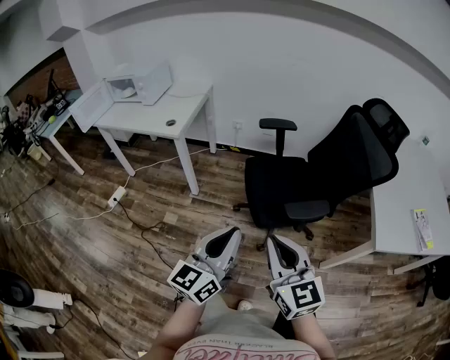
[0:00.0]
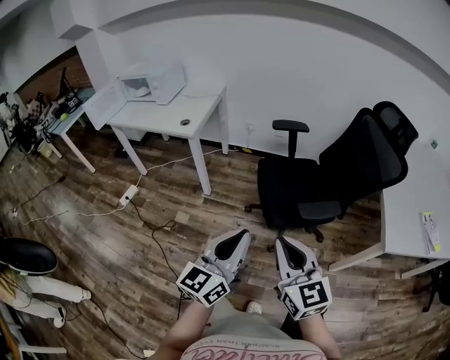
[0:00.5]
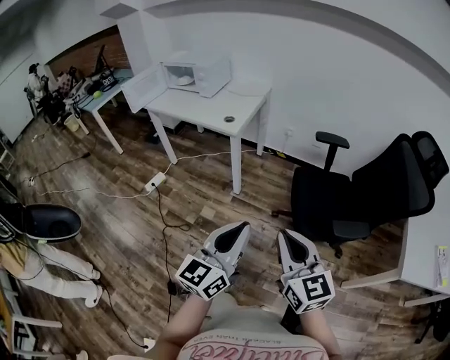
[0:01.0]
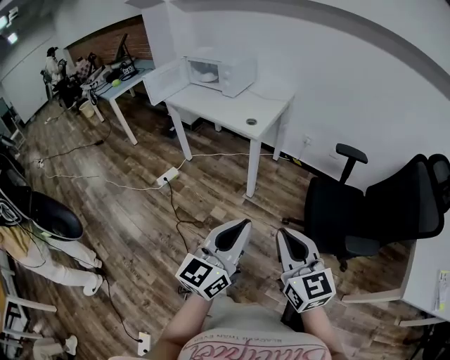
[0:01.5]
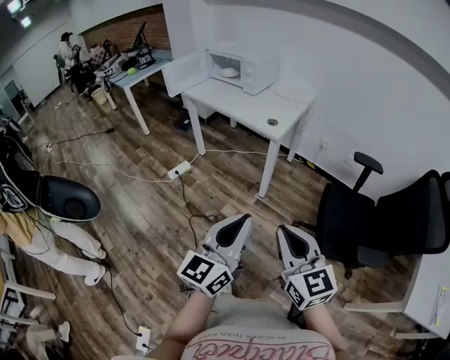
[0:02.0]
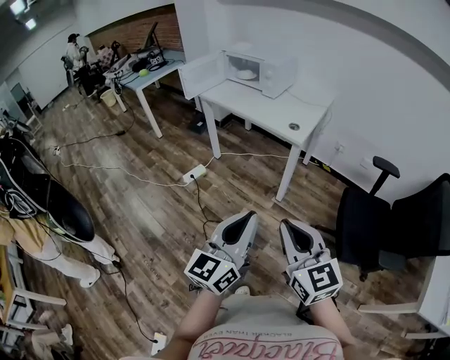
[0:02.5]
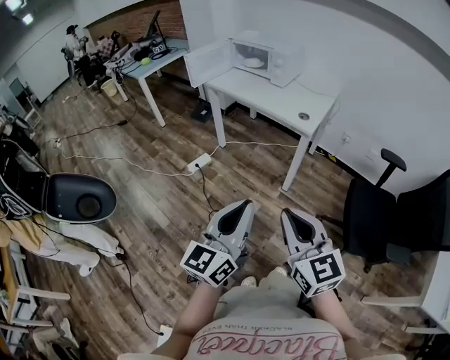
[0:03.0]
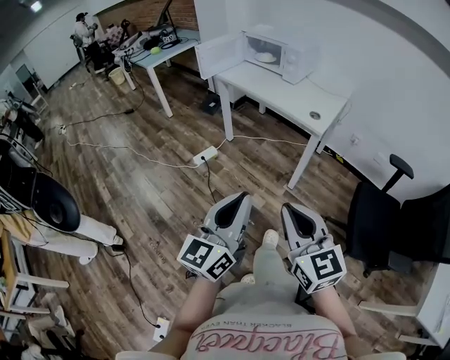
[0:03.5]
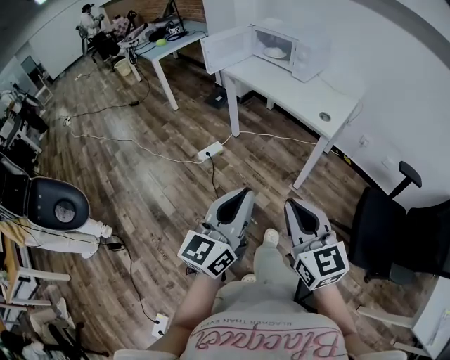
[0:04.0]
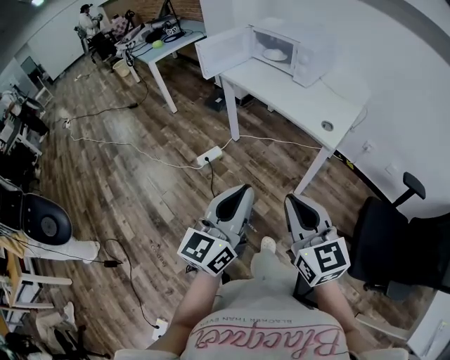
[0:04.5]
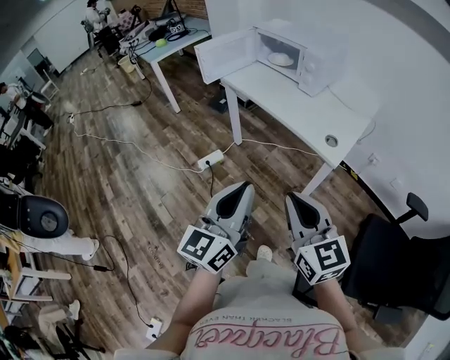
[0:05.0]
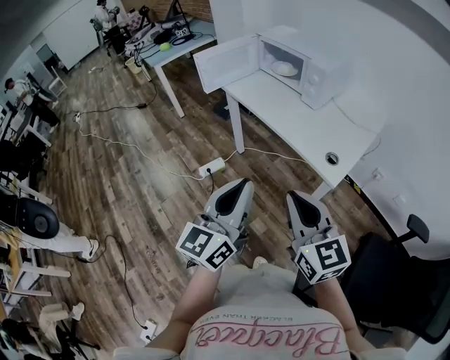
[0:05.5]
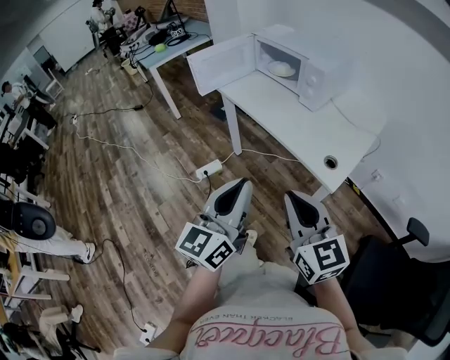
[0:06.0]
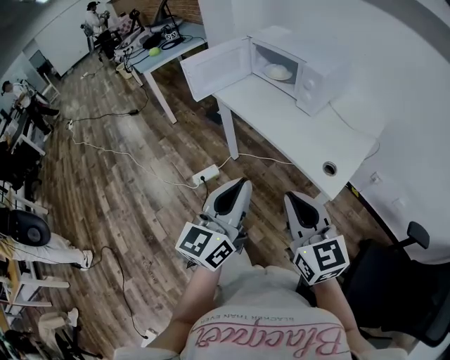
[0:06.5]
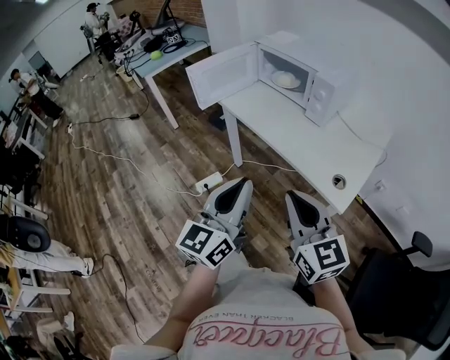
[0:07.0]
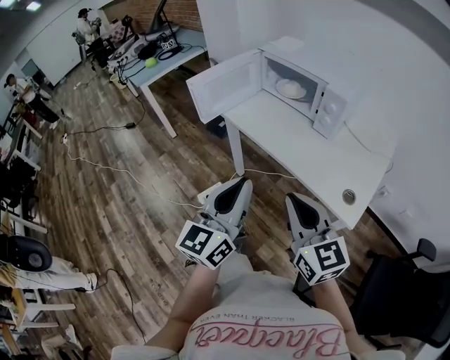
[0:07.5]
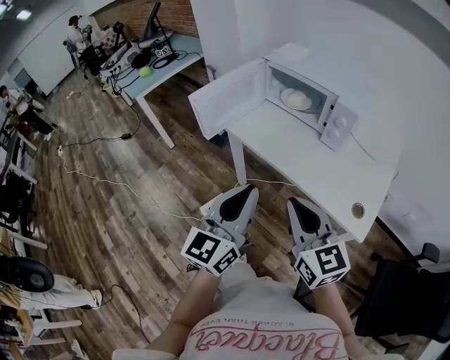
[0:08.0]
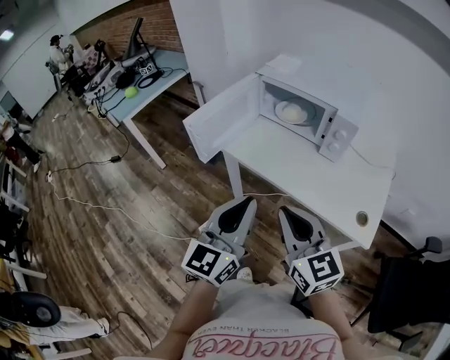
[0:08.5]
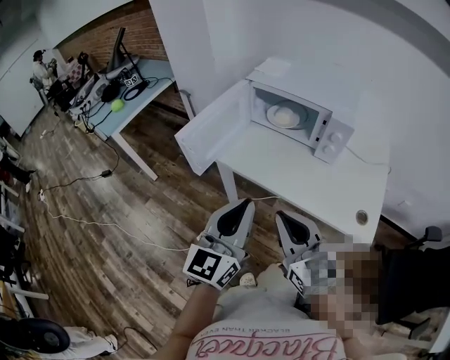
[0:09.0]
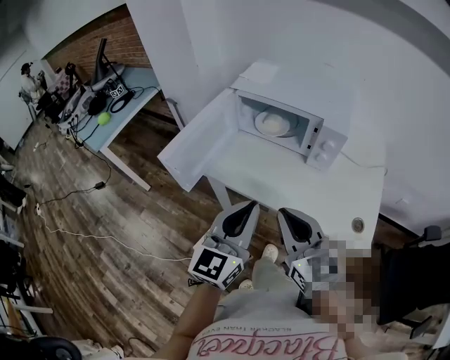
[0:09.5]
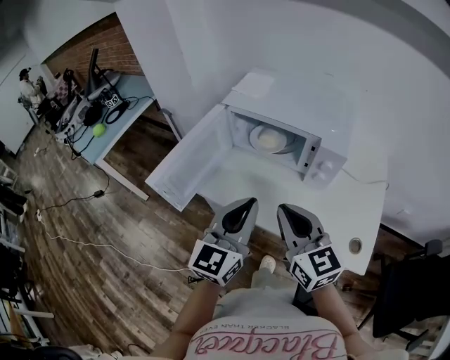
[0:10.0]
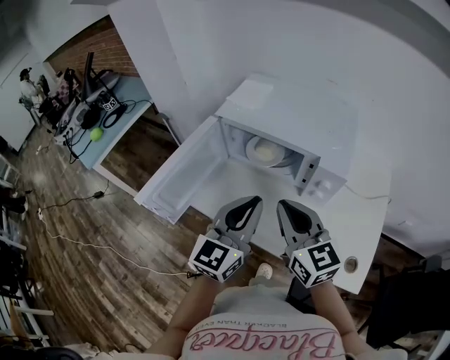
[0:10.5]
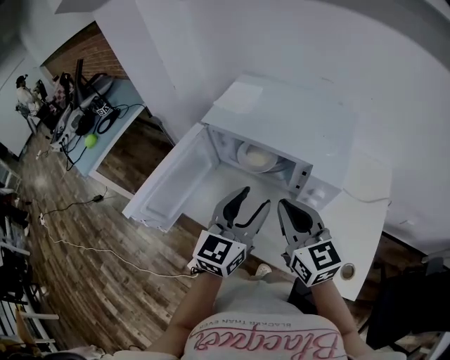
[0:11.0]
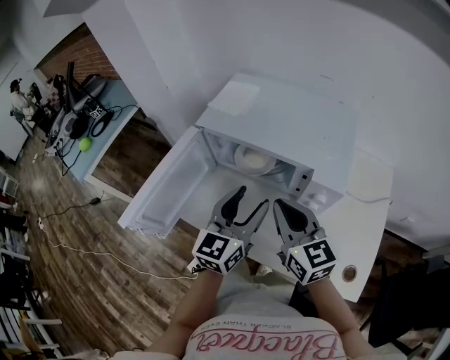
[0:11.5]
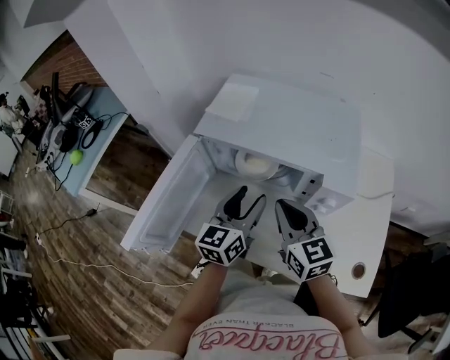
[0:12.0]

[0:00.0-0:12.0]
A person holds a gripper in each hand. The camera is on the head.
0:00.0 to 0:02.0: The two grippers go approximately 25 cm to the left. The right gripper swivels roughly 20 degrees. Meanwhile the left gripper changes its angle by roughly 20 degrees.
0:02.0 to 0:04.0: The two grippers go roughly 20 cm to the left and forward.
0:04.0 to 0:06.0: Both grippers move forward, approximately 30 cm.
0:06.0 to 0:08.0: Both grippers travel together forward and to the left, roughly 25 cm.
0:08.0 to 0:10.0: Both grippers move forward, about 20 cm.
0:10.0 to 0:12.0: The right gripper travels forward by approximately 20 cm. The left gripper goes some 25 cm forward and downward, and opens up.

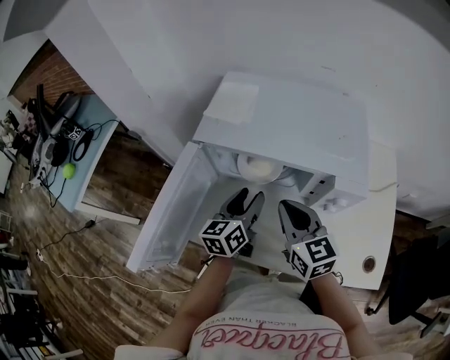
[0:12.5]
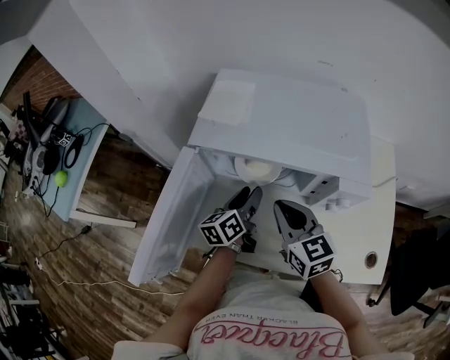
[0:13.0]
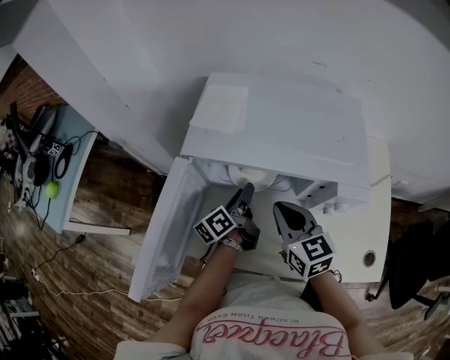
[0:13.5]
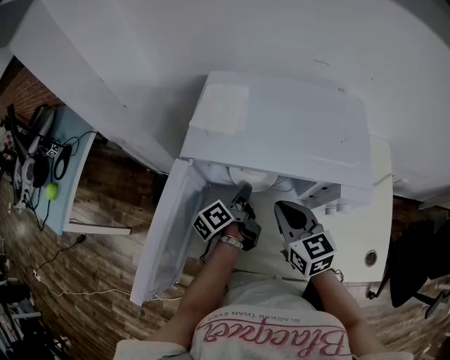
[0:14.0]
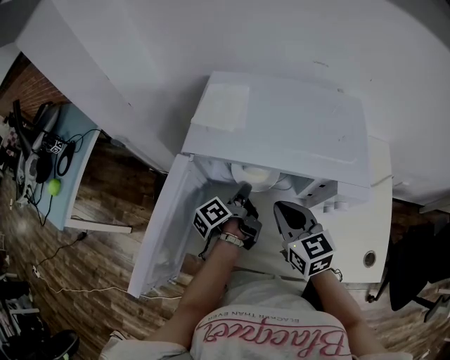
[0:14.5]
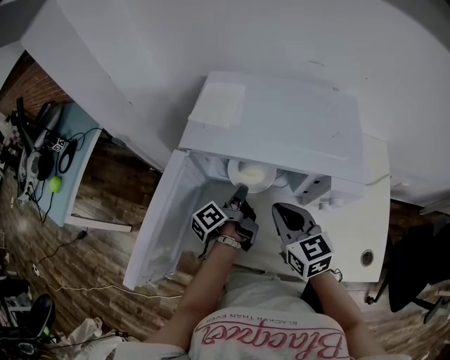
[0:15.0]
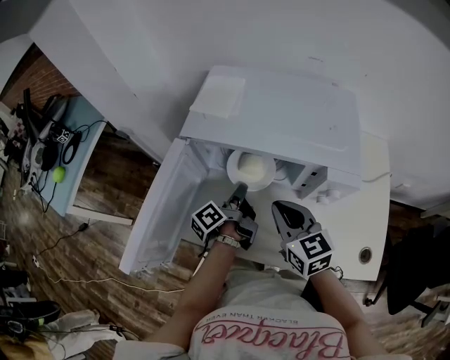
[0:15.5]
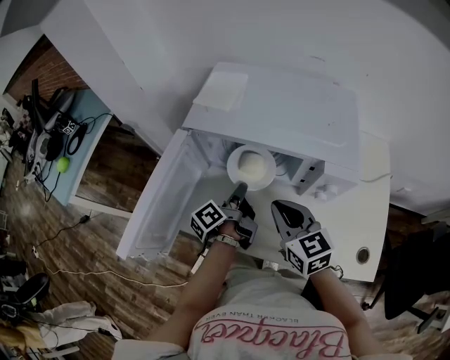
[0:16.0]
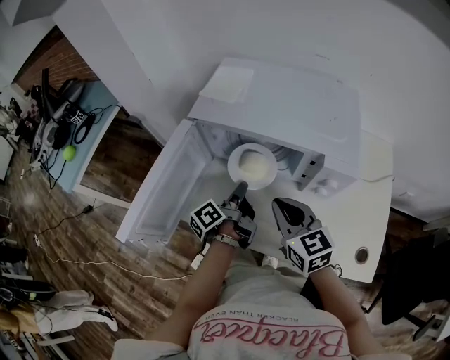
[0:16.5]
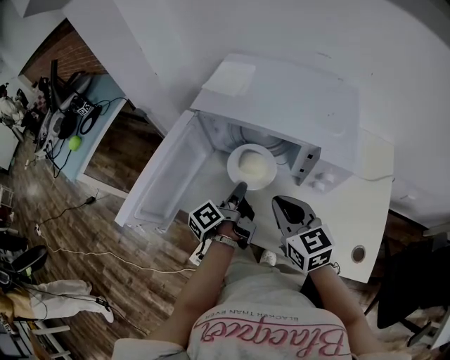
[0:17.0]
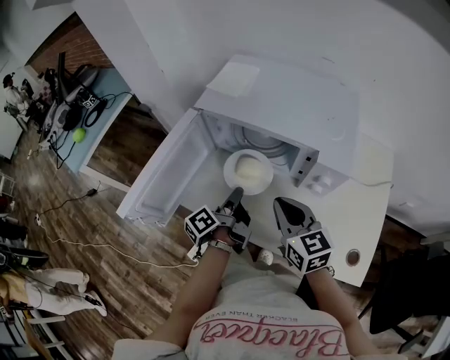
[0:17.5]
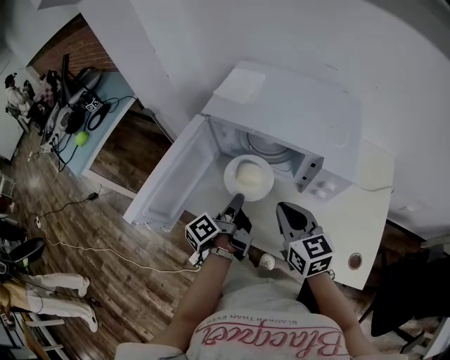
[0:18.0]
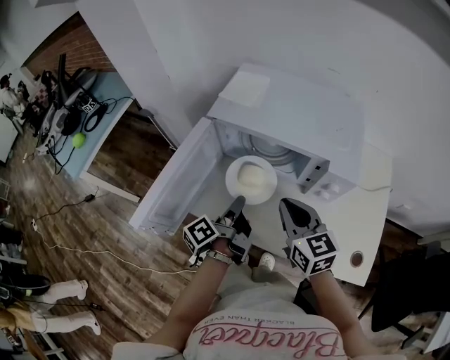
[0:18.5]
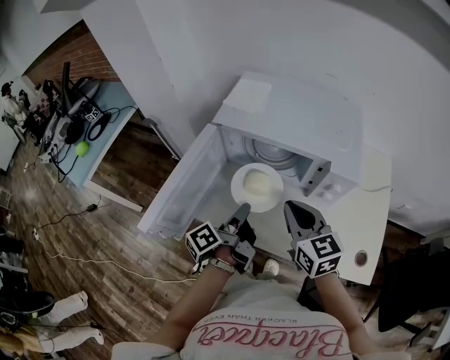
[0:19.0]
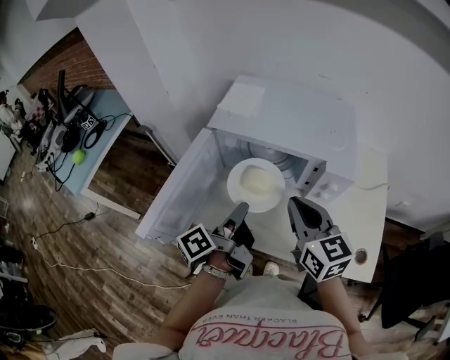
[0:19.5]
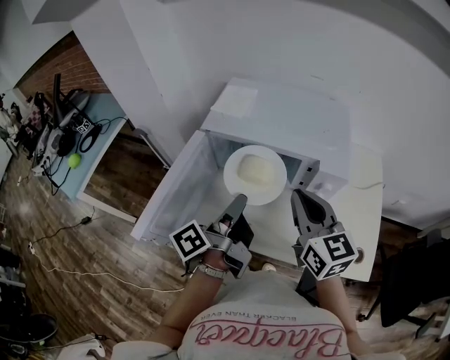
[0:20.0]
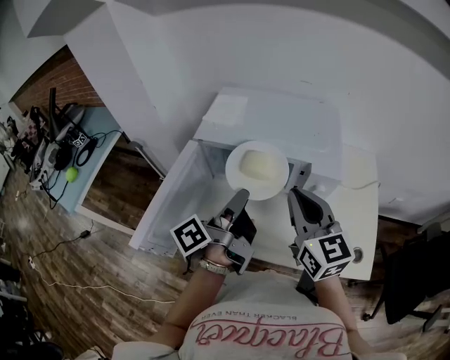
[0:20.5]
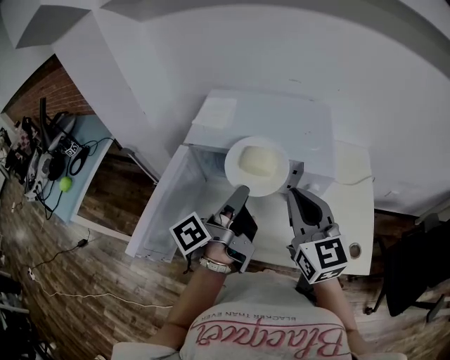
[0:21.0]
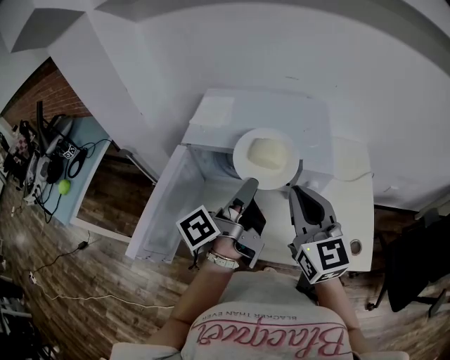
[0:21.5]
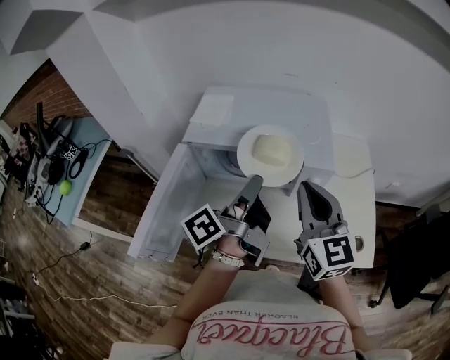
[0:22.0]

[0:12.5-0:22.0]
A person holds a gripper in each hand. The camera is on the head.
0:12.5 to 0:14.5: The left gripper moves downward and forward, about 10 cm, rolls counterclockwise, seen from behind, by approximately 50 degrees, and closes.
0:14.5 to 0:16.5: Both grippers move backward, roughly 10 cm.
0:16.5 to 0:18.0: The left gripper moves backward, about 5 cm.
0:18.0 to 0:20.0: Both grippers travel together upward, roughly 15 cm.
0:20.0 to 0:22.0: The right gripper ends up roughly 5 cm from where it was. The left gripper goes roughly 5 cm to the right.

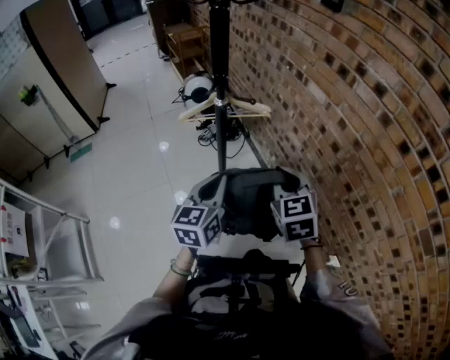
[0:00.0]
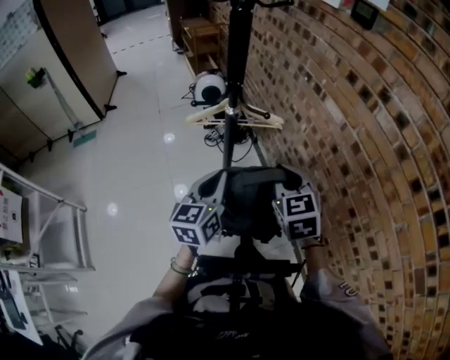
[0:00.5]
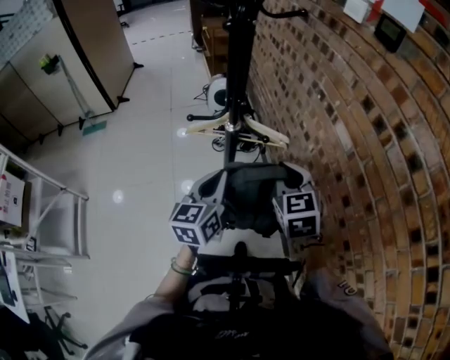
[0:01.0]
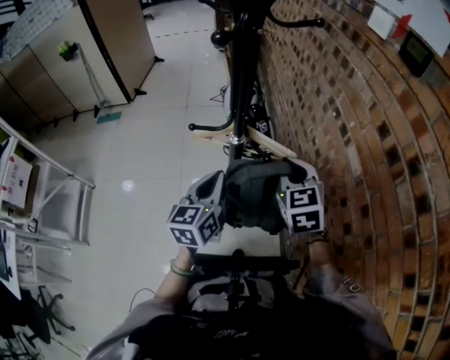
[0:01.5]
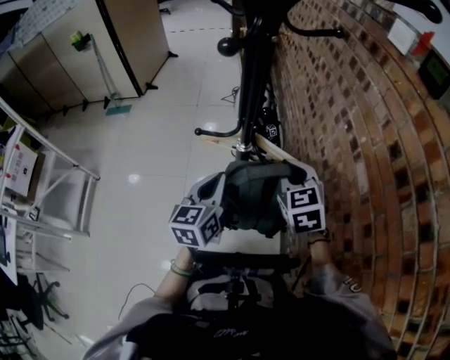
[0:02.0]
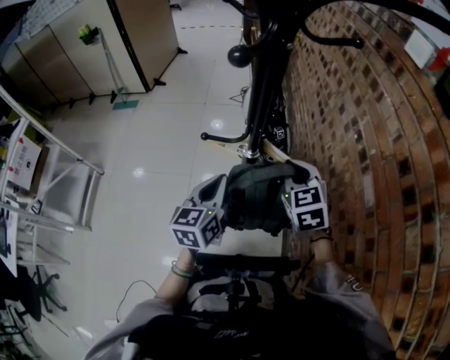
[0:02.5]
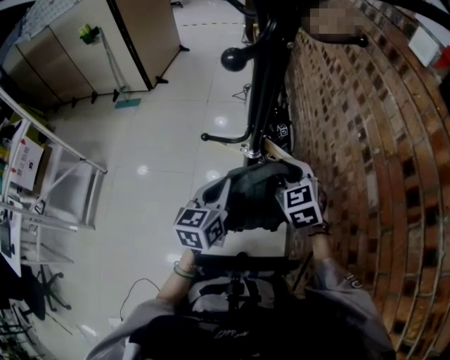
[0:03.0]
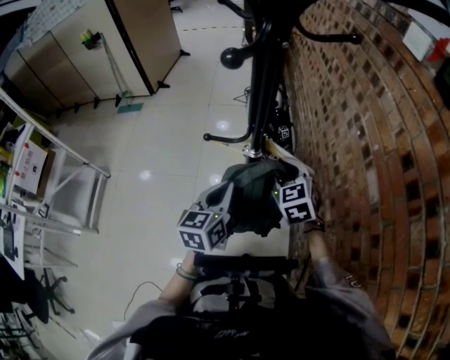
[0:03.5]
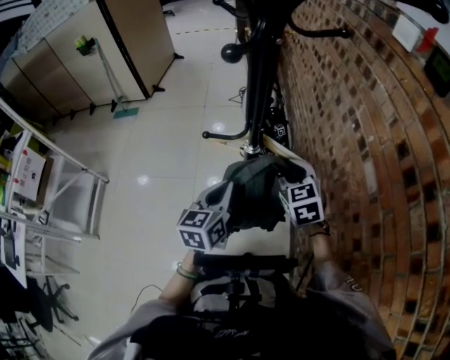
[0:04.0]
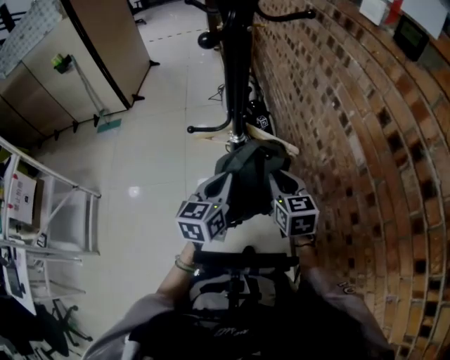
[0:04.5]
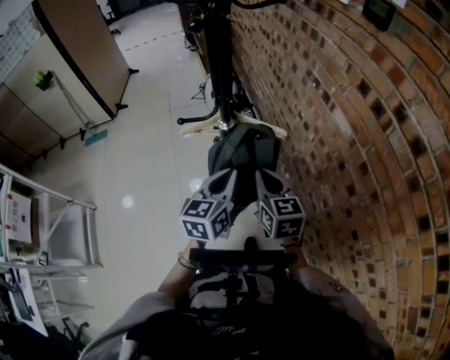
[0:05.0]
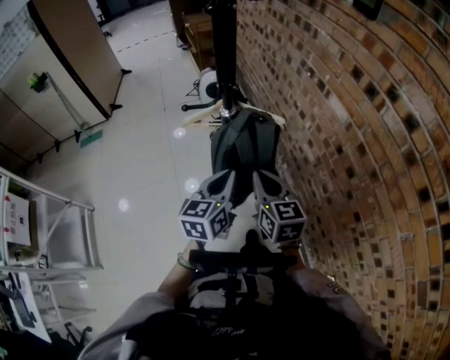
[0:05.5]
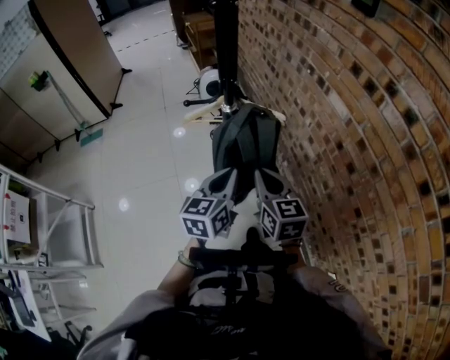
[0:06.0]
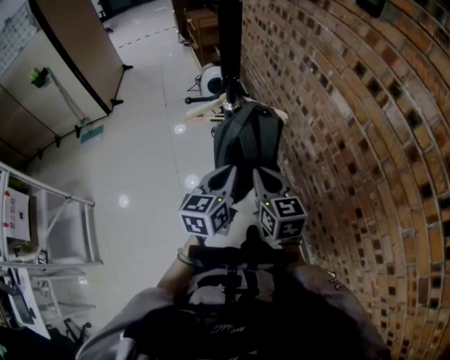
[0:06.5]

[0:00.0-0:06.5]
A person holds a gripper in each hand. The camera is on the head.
0:00.0 to 0:02.0: The left gripper ends up some 20 cm from where it was, and swivels approximately 30 degrees; the right gripper changes place by approximately 30 cm, and rotates about 30 degrees.
0:02.0 to 0:04.5: The right gripper moves downward and backward, some 10 cm, and swivels about 20 degrees.
0:04.5 to 0:06.5: The grippers both shift backward by about 10 cm.
